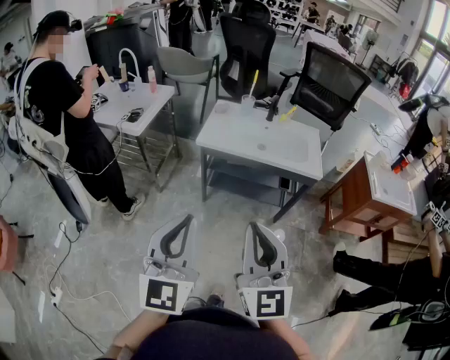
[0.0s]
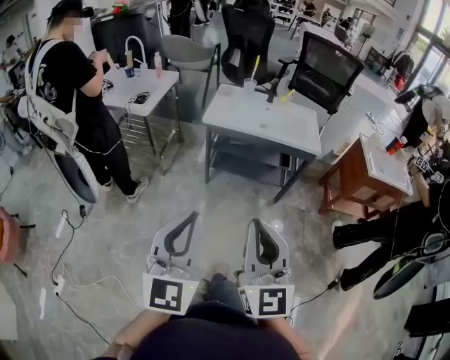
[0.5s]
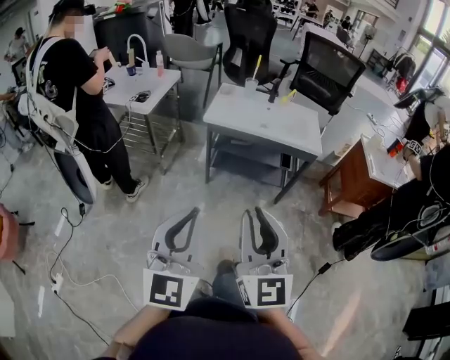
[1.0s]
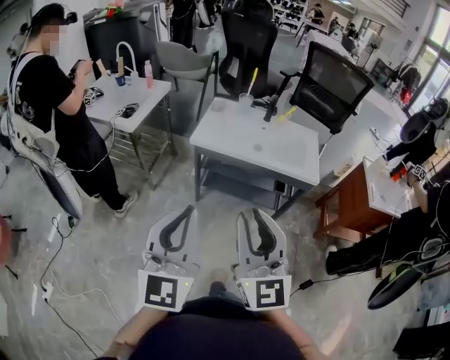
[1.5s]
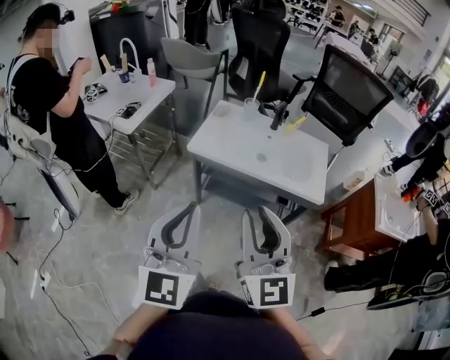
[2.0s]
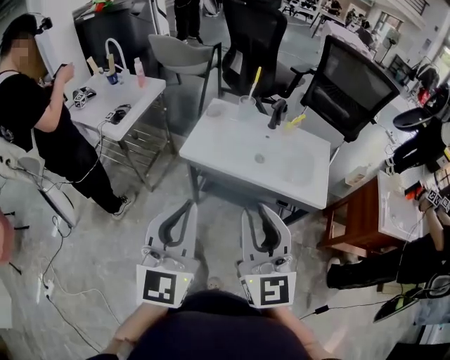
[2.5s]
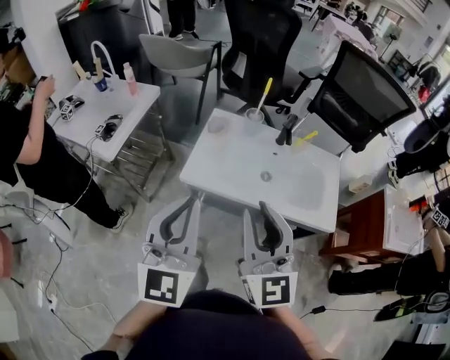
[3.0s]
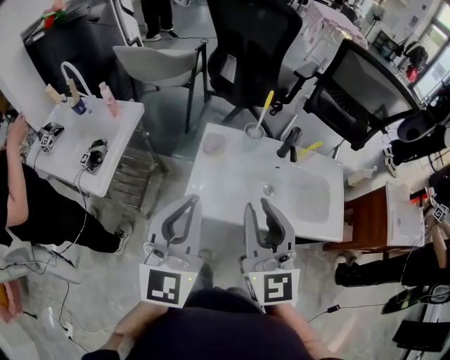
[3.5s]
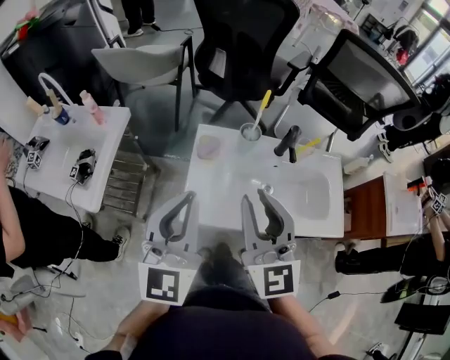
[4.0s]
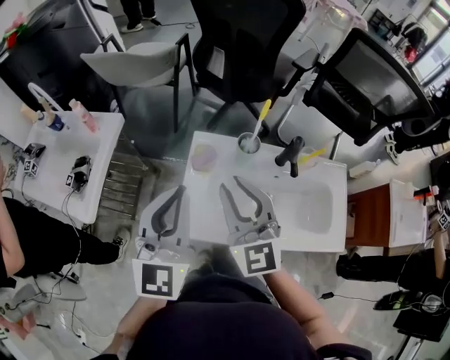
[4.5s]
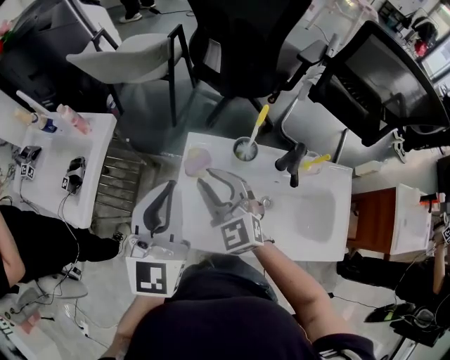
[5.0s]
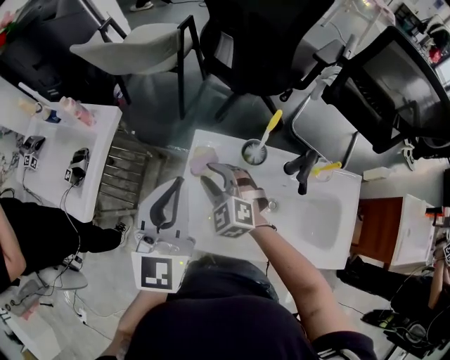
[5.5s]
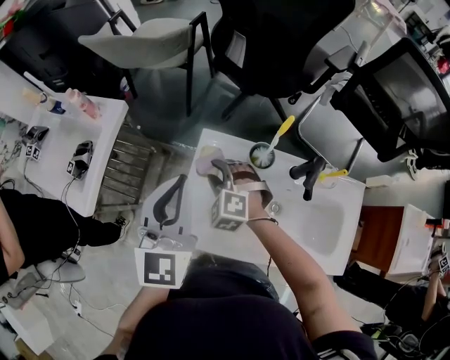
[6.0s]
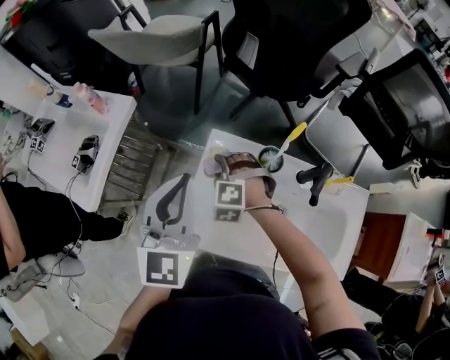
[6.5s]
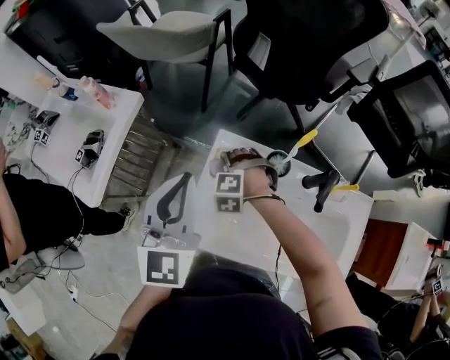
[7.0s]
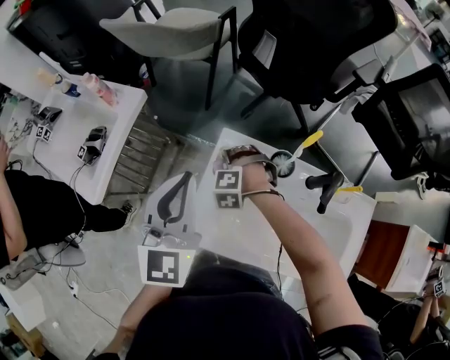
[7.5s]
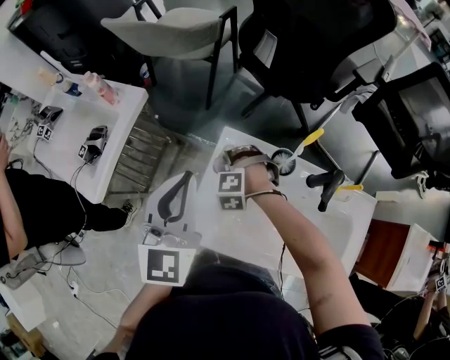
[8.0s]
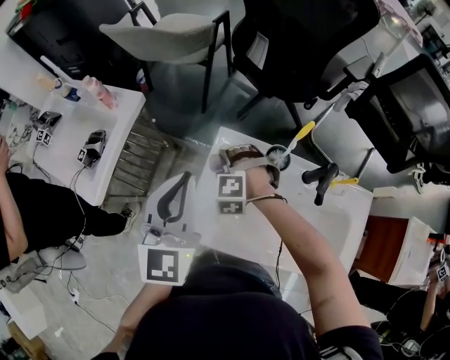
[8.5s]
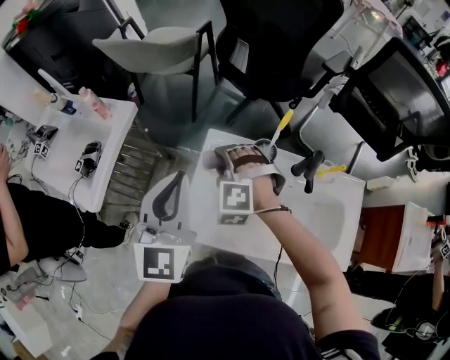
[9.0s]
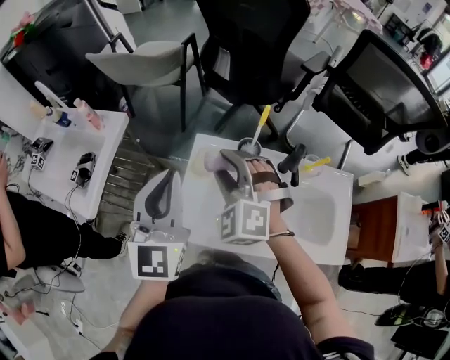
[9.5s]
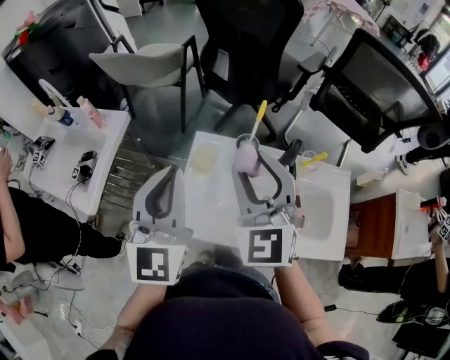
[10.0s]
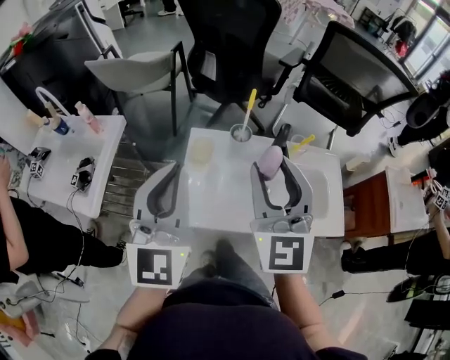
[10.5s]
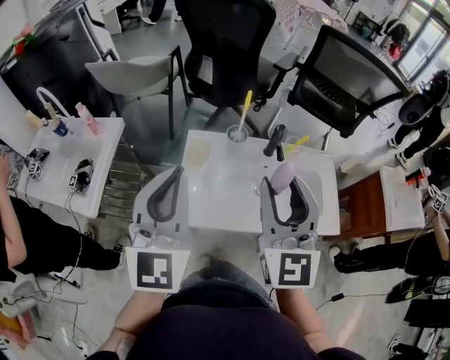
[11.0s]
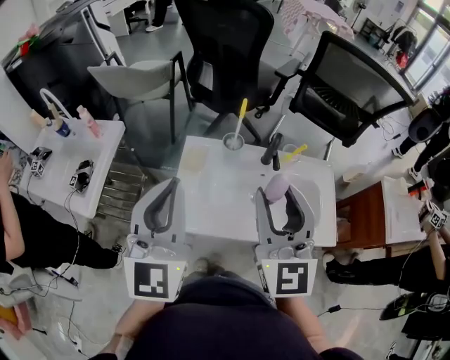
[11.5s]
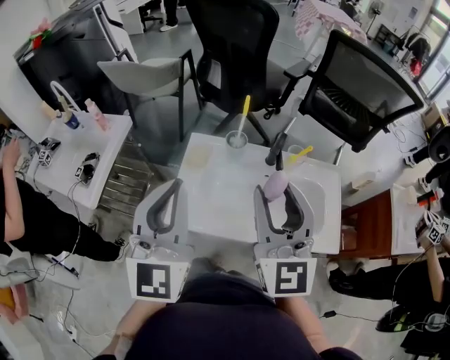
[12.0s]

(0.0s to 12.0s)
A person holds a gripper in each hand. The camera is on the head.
0.0s - 2.0s: The left gripper travels forward and to the right by approximately 15 cm. The right gripper moves forward, approximately 15 cm.
2.0s - 4.0s: The pair of grippers is taken forward, about 40 cm.
4.0s - 6.0s: The left gripper moves forward, approximately 15 cm; the right gripper goes roughly 35 cm downward and forward, and tips its fingers downward by roughly 50 degrees.
6.0s - 8.0s: The right gripper shifts some 5 cm downward, and swivels about 30 degrees.
8.0s - 10.0s: The right gripper is displaced upward by roughly 35 cm, and angles its fingers upward, by approximately 60 degrees; the left gripper is displaced backward and upward by about 10 cm.
10.0s - 12.0s: The two grippers go approximately 15 cm backward and to the right. The right gripper turns by roughly 20 degrees.

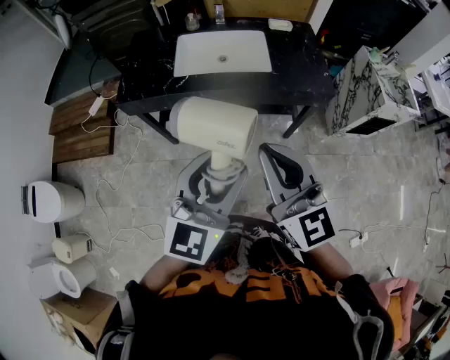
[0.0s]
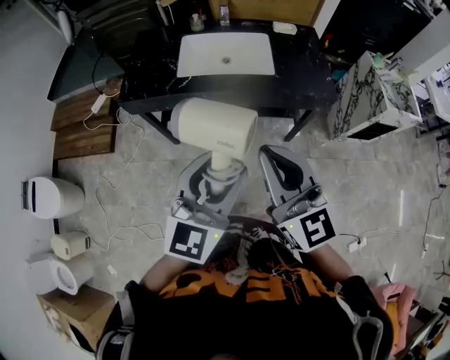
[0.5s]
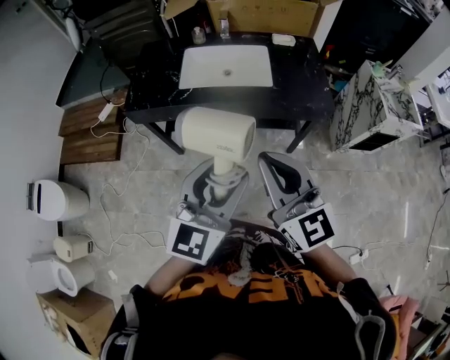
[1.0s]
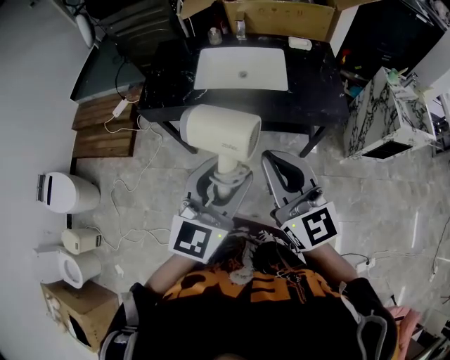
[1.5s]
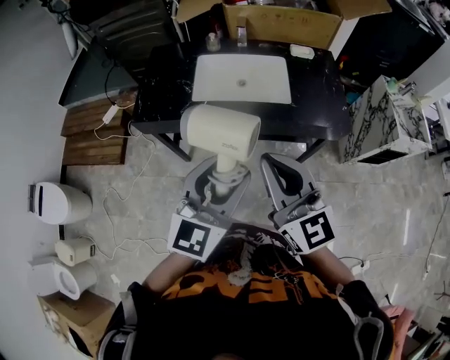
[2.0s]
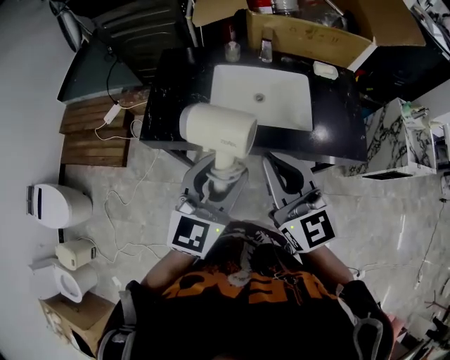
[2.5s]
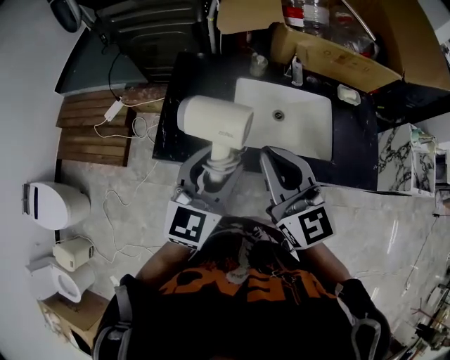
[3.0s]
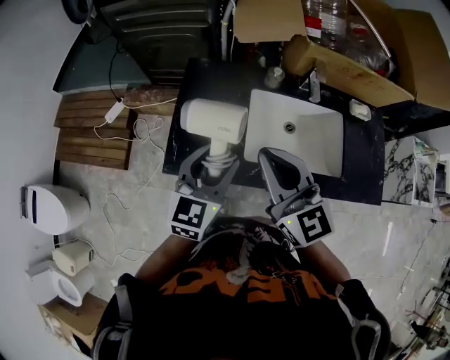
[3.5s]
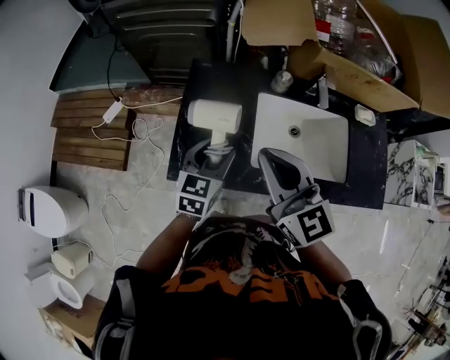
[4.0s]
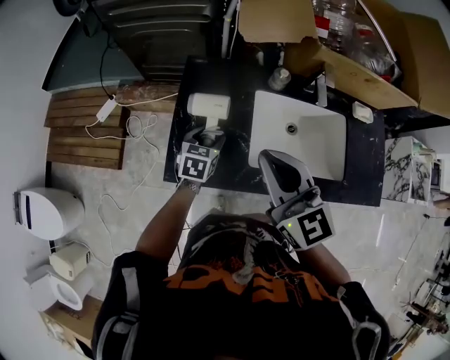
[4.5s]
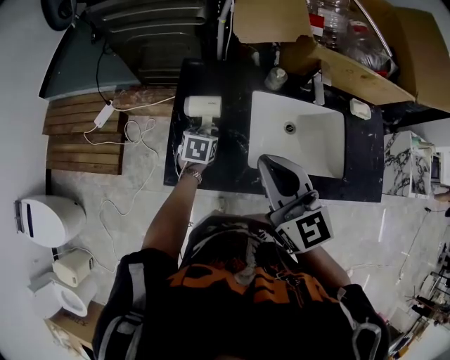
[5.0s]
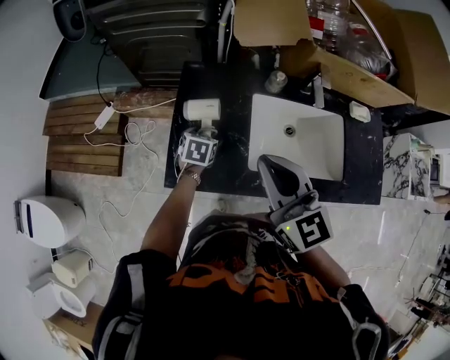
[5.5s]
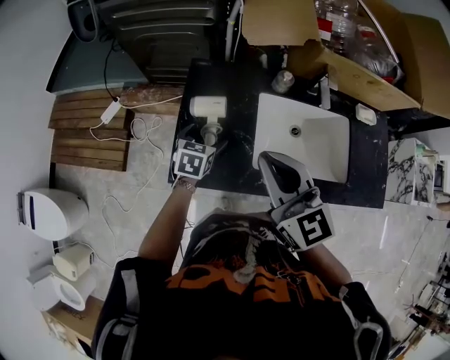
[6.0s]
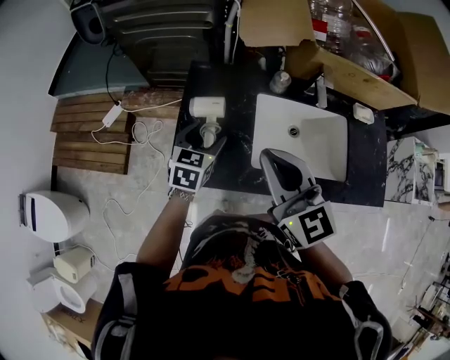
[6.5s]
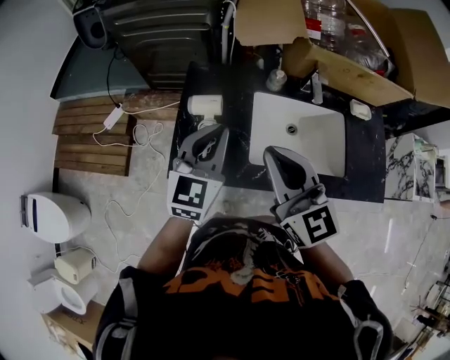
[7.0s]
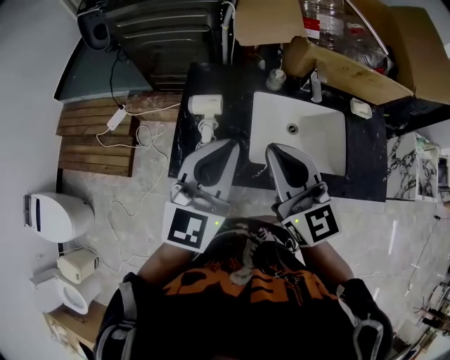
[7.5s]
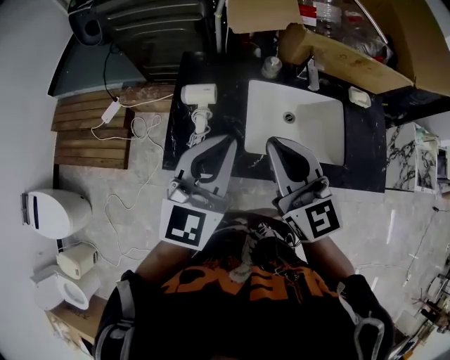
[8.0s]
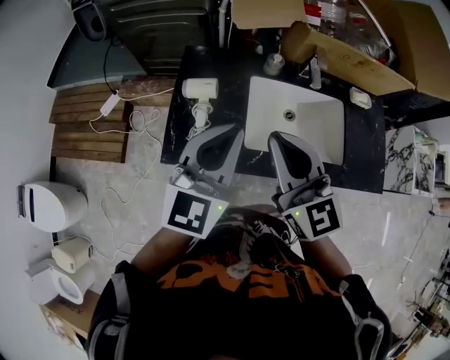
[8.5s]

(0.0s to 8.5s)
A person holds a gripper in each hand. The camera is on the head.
0.0s - 2.0s: The grippers both shift forward by approximately 10 cm.
2.0s - 4.0s: Both grippers are carried forward and to the left, some 50 cm. The left gripper goes approximately 20 cm downward, and turns by some 20 degrees.
4.0s - 6.5s: The left gripper moves about 15 cm downward and comes back.
6.5s - 8.5s: The right gripper ends up about 5 cm from where it was, while the left gripper travels upward and backward by roughly 25 cm, tips its fingers upward by some 30 degrees, and closes up.

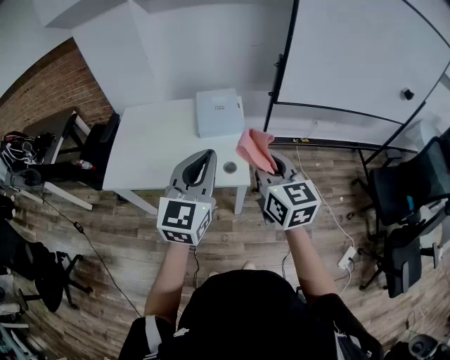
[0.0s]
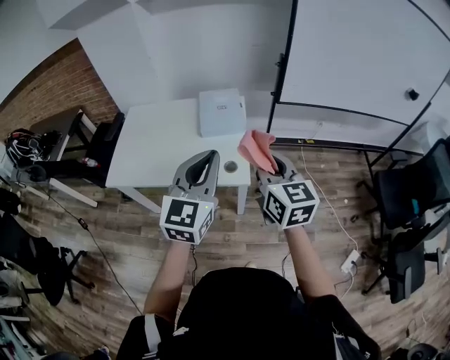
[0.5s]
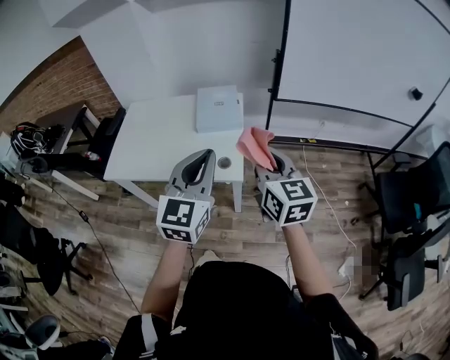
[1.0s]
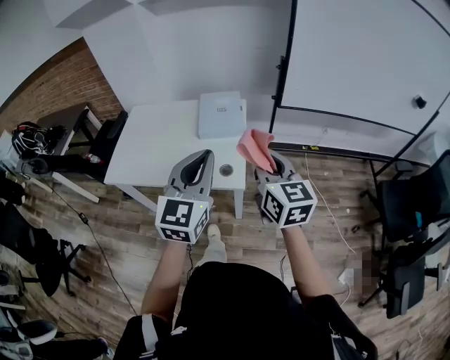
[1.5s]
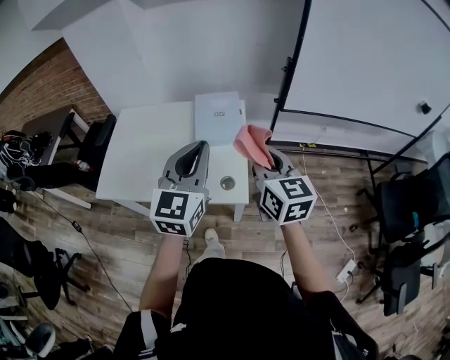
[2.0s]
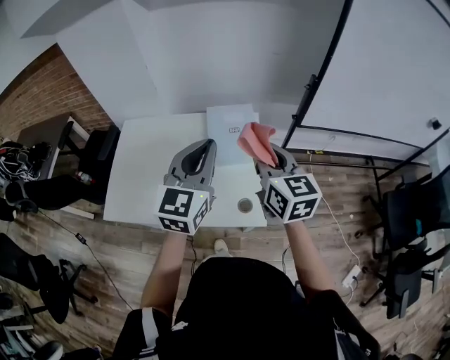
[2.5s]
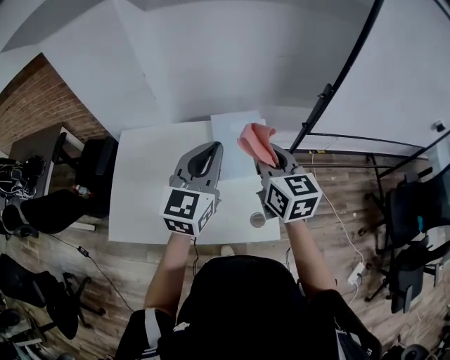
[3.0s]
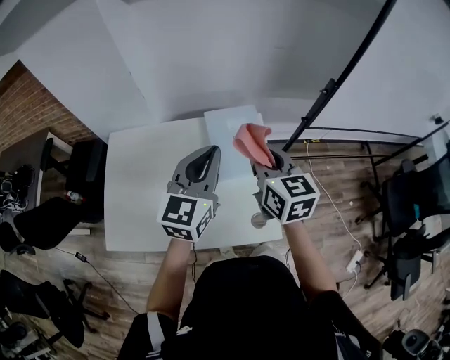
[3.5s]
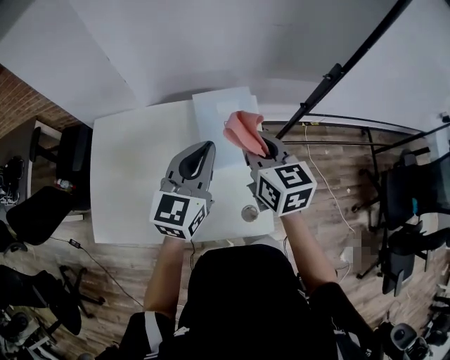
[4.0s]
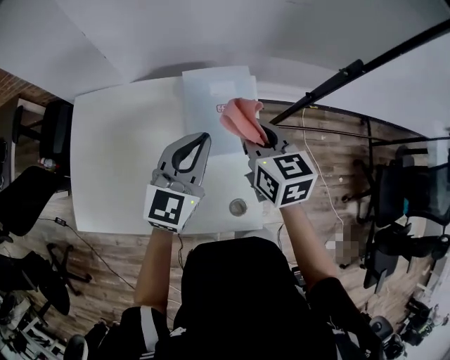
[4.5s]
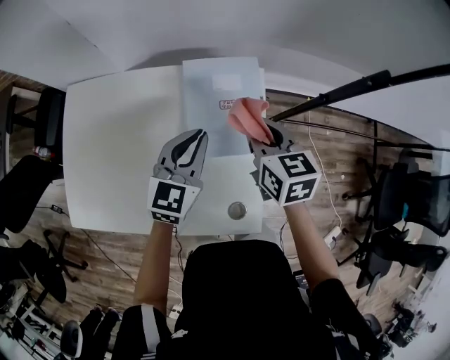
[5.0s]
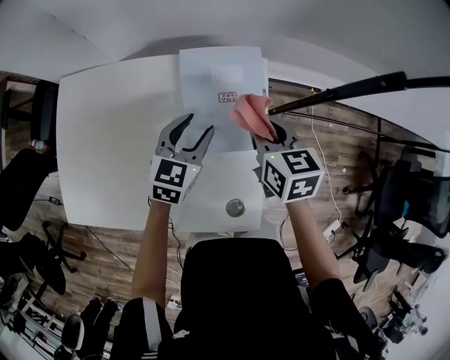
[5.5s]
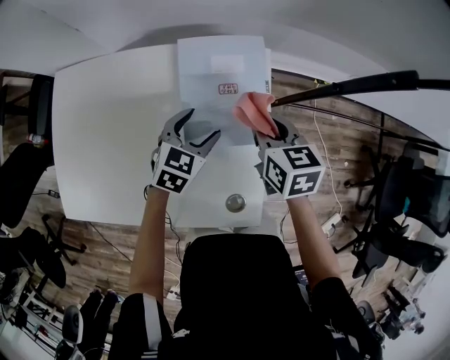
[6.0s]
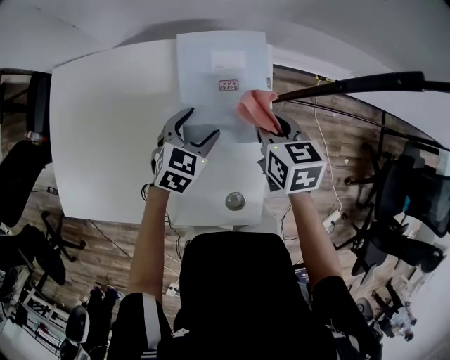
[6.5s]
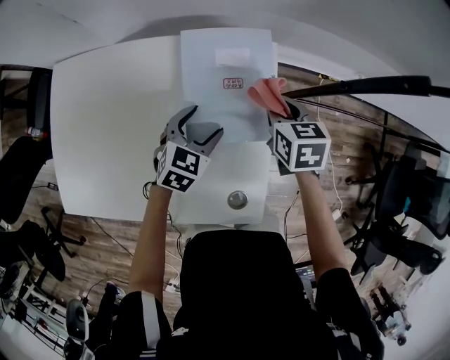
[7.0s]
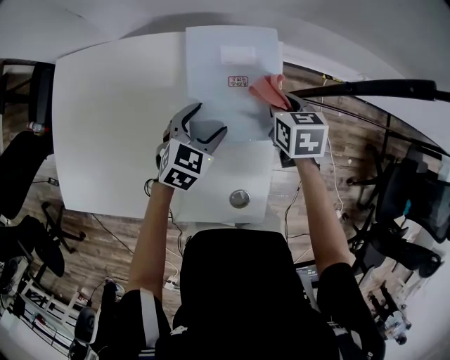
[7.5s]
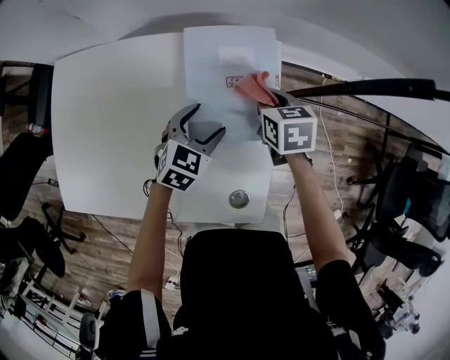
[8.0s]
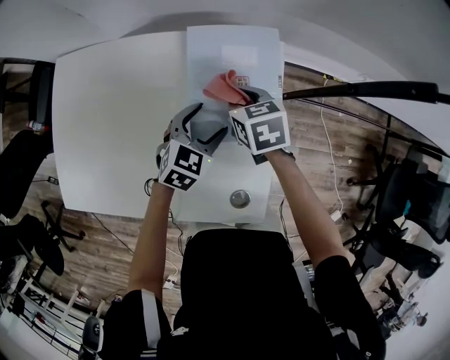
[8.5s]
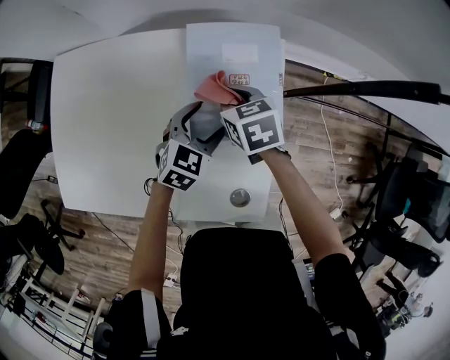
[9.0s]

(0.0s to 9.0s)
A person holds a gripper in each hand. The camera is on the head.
0.0s - 2.0s: Both grippers move forward, roughly 10 cm.
2.0s - 4.5s: Both grippers move forward and downward, about 30 cm.
4.5s - 7.0s: The two grippers go some 20 cm downward. The right gripper swivels approximately 20 degrees, while the left gripper tips its fingers downward by roughly 30 degrees, and opens up.
7.0s - 9.0s: The right gripper travels to the left by approximately 15 cm.
